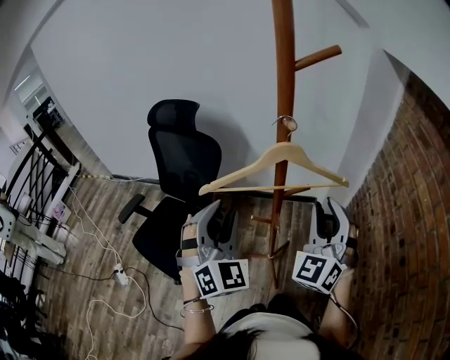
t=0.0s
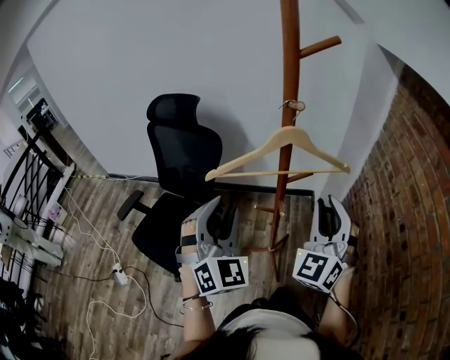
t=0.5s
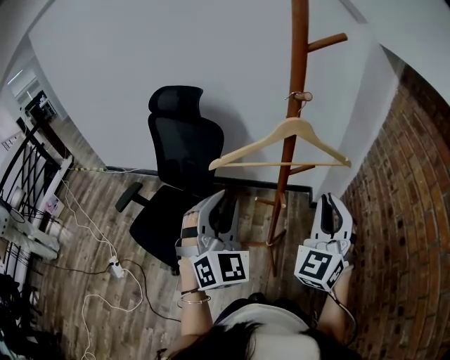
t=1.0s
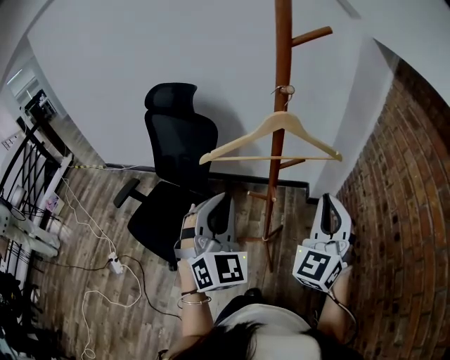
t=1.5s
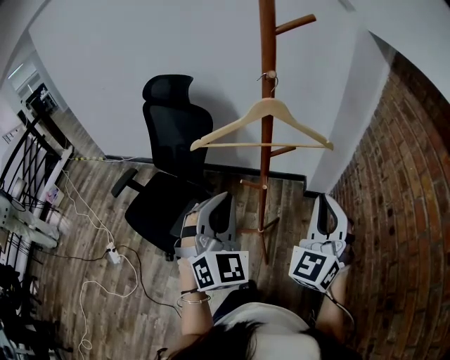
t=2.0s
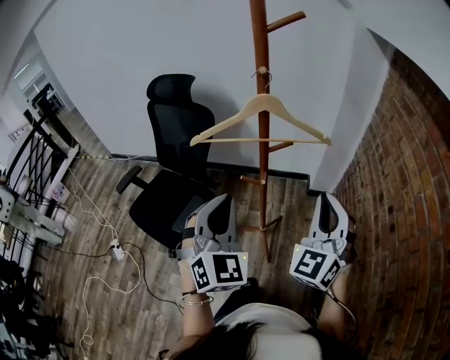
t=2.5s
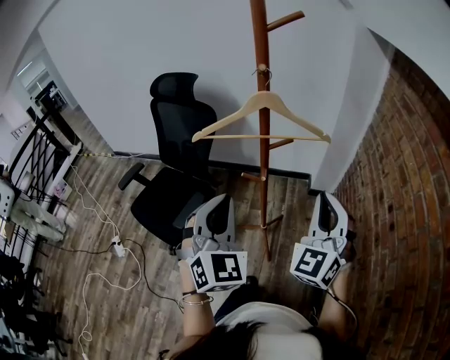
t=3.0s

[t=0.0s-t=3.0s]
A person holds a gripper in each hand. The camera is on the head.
t=0.0s to t=1.5s: Both grippers move backward, approximately 5 cm. The right gripper closes its fingers, while the left gripper closes its fingers.
t=1.5s to t=3.0s: The right gripper moves approximately 5 cm; the left gripper shifts roughly 10 cm backward and to the right.

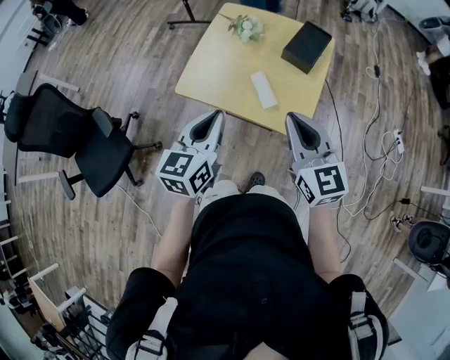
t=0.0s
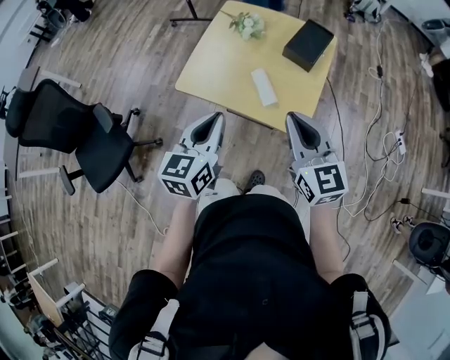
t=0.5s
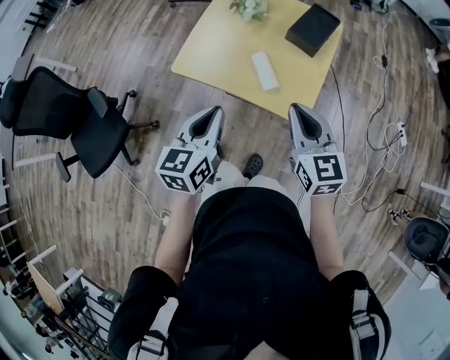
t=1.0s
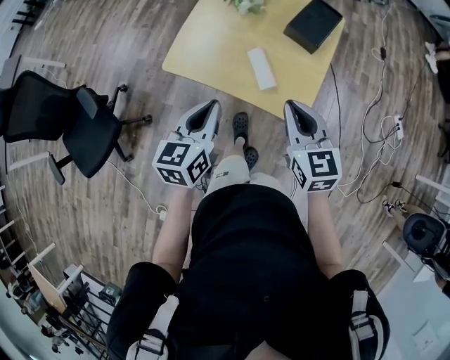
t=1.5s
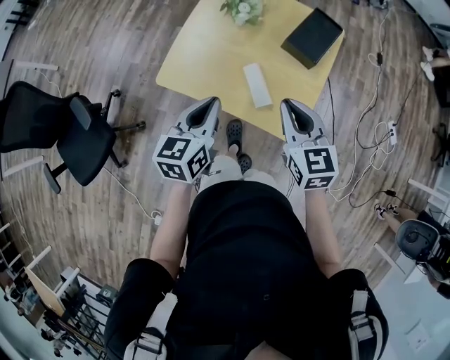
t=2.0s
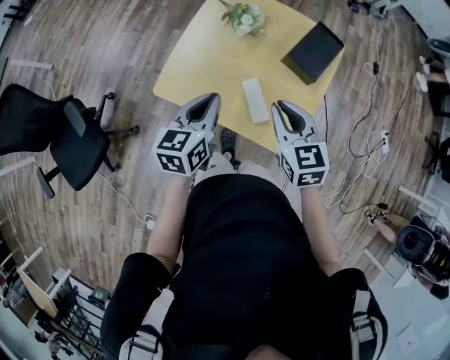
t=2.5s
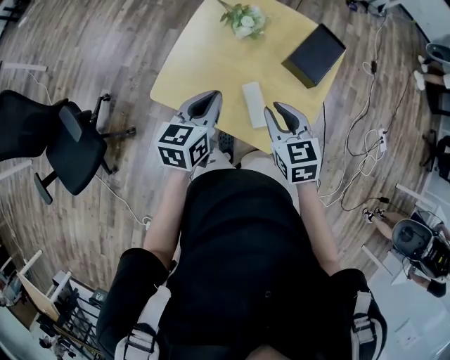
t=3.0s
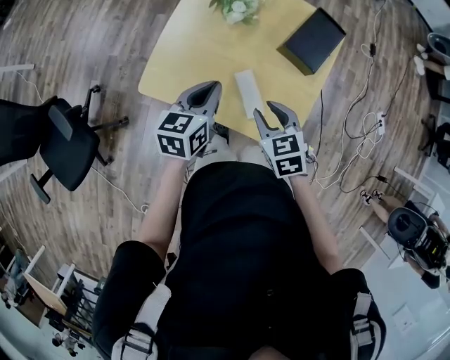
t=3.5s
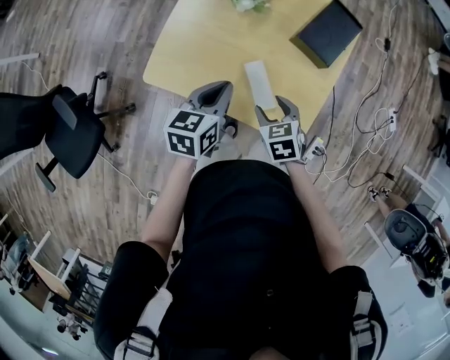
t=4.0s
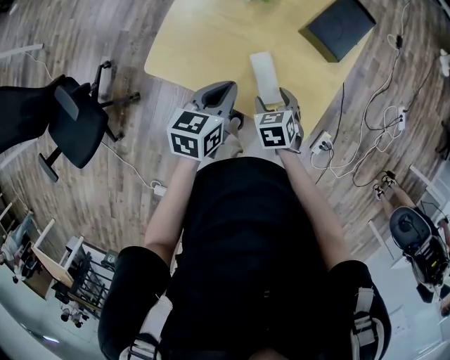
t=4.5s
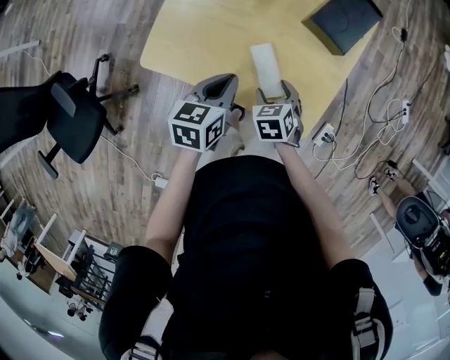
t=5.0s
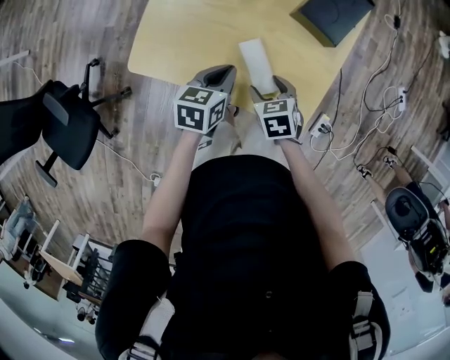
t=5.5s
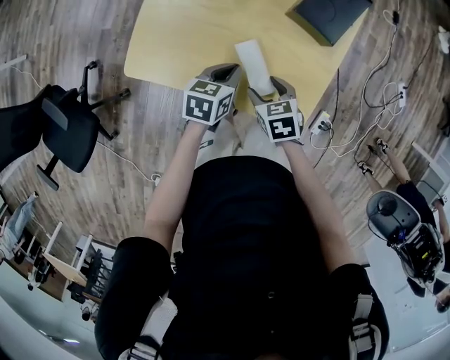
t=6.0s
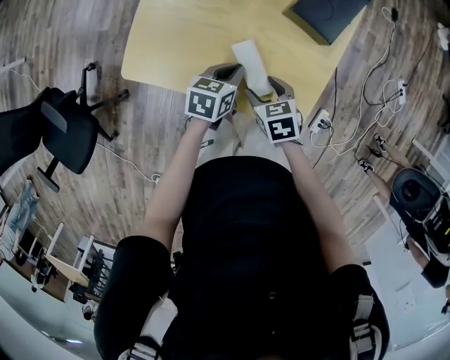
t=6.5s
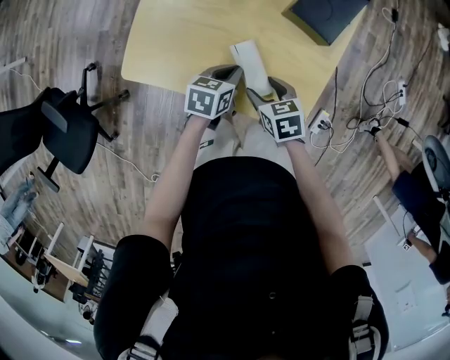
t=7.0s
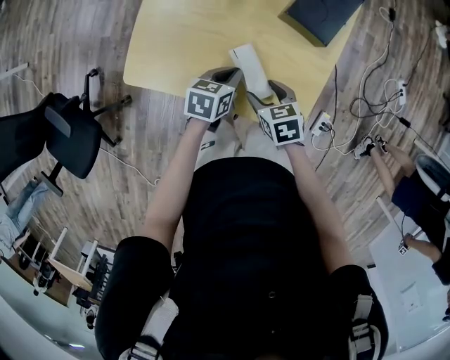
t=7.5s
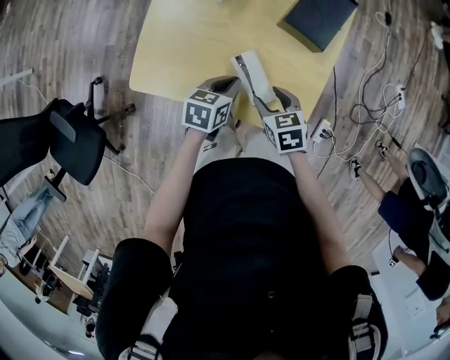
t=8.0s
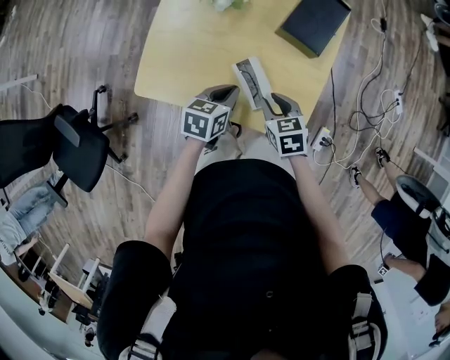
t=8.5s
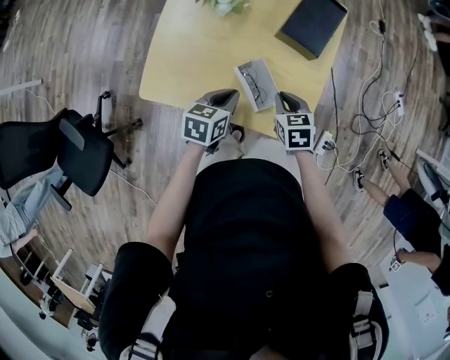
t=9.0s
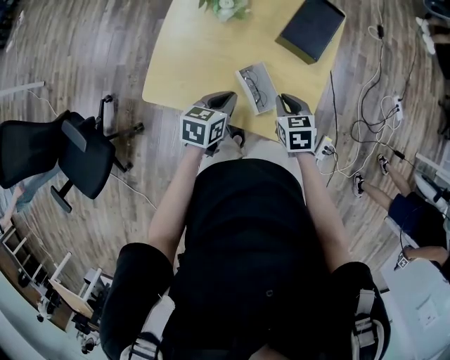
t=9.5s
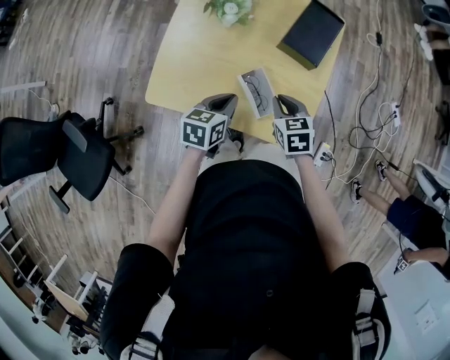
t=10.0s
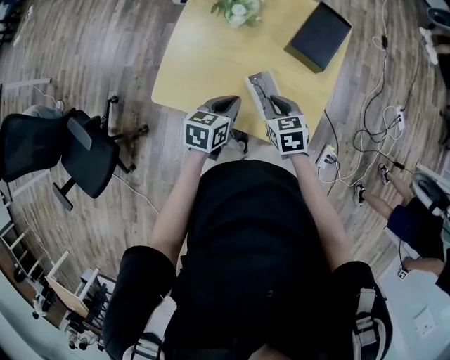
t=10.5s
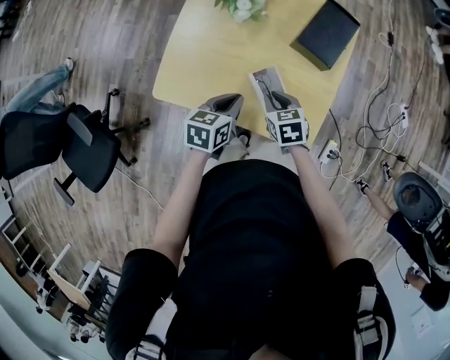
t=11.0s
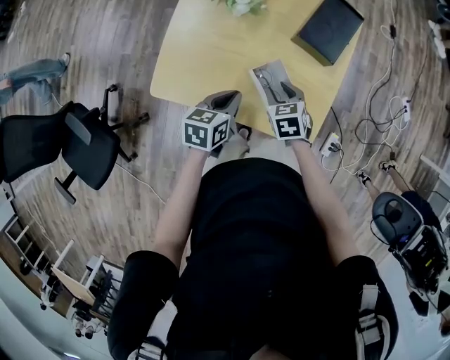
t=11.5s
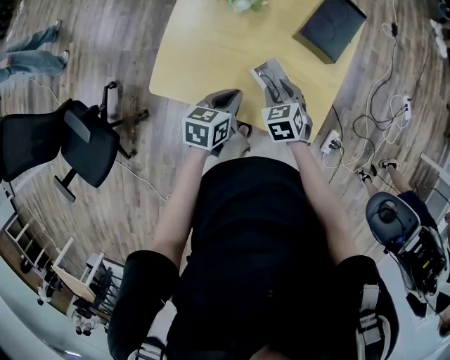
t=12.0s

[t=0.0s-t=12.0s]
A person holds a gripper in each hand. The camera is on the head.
t=0.0s to t=2.0s: Both grippers travel together forward and downward, about 15 cm.
t=2.0s to t=4.0s: The left gripper travels forward and downward by some 15 cm. The right gripper shifts some 20 cm downward, points its fingers about 30 degrees further downward, and opens its fingers.
t=4.0s to t=6.0s: The left gripper goes about 15 cm downward and to the right; the right gripper heads downward, covering some 10 cm.
t=6.0s to t=8.0s: There are only small adjustments of the grippers.
t=8.0s to t=10.0s: The grippers both shift upward by roughly 5 cm. The right gripper closes up.
t=10.0s to t=12.0s: The right gripper moves downward and to the left, some 10 cm, and opens its fingers.

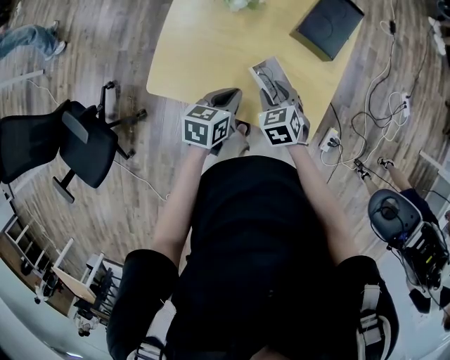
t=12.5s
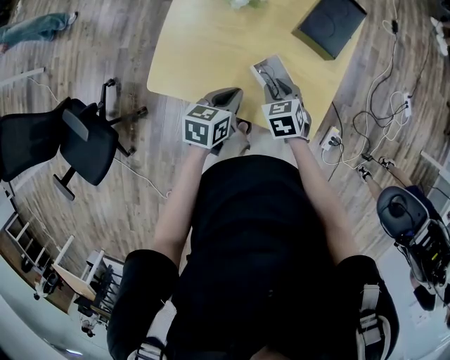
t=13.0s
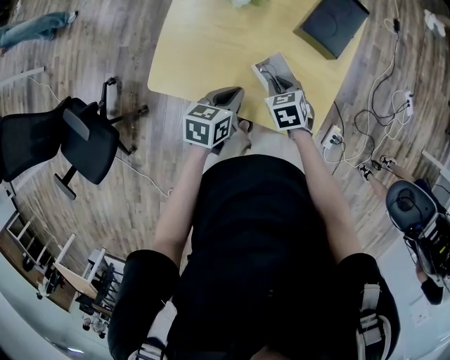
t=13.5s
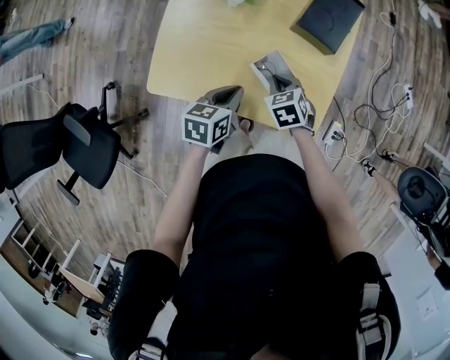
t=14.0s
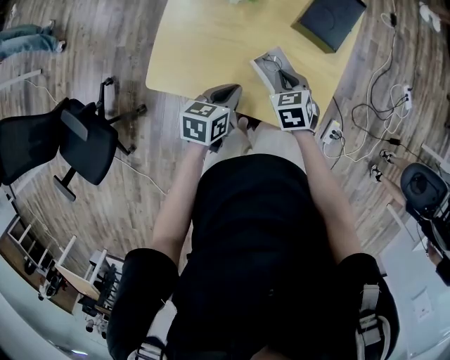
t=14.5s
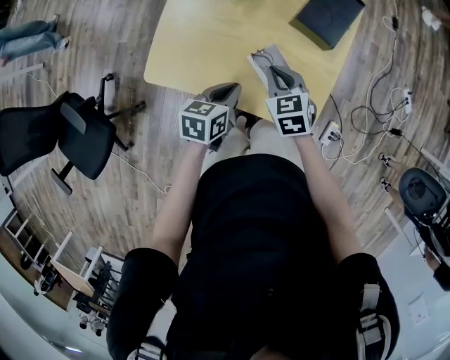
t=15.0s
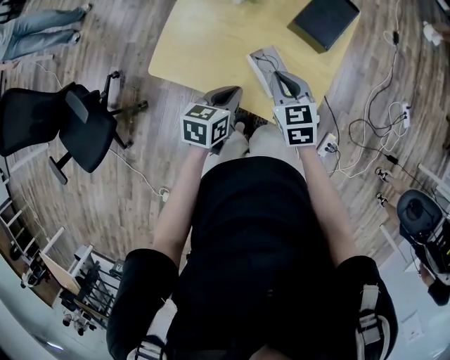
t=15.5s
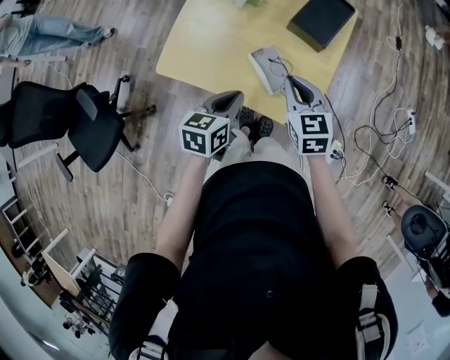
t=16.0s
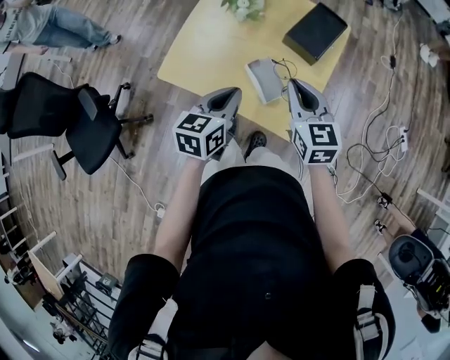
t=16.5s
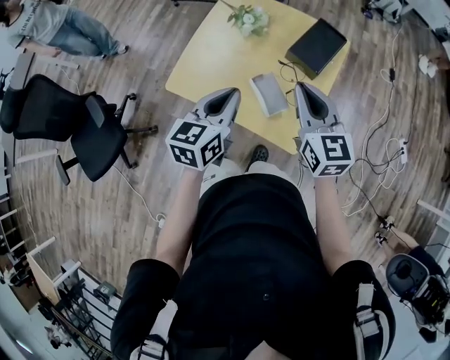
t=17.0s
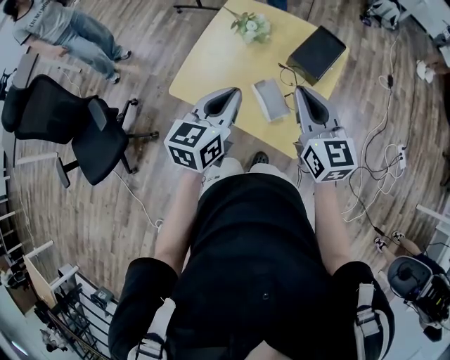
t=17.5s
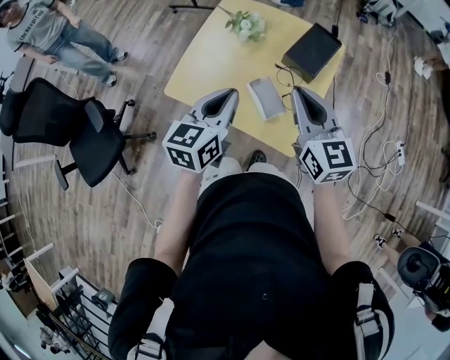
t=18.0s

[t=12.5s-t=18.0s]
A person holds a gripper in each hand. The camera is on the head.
t=12.5s to t=14.5s: The right gripper closes.
t=14.5s to t=16.0s: The right gripper moves upward and backward, approximately 15 cm, and swivels about 30 degrees. Meanwhile the left gripper travels upward, backward and to the right by roughly 15 cm.
t=16.0s to t=18.0s: Both grippers move upward, approximately 15 cm. The right gripper changes its angle by roughly 20 degrees. Meanwhile the left gripper rotates roughly 20 degrees.

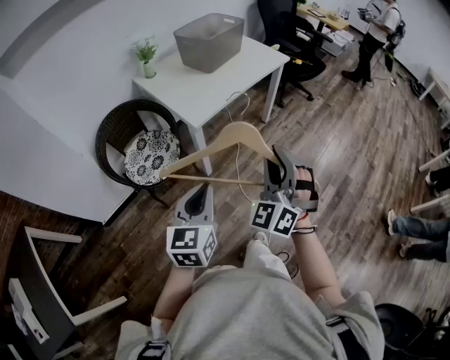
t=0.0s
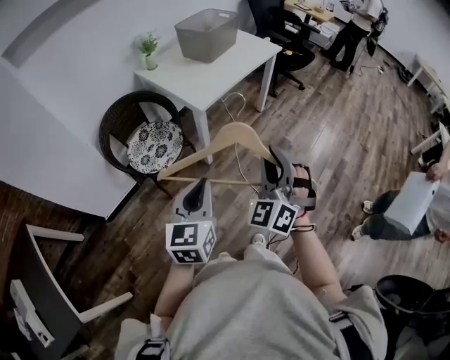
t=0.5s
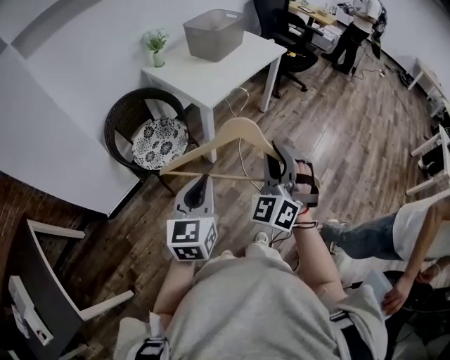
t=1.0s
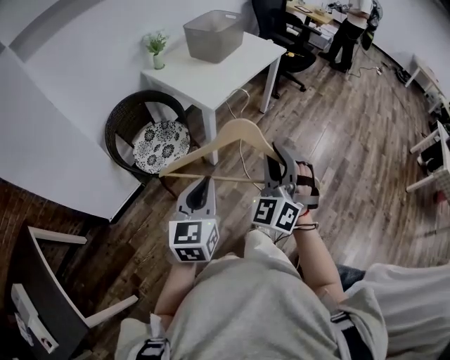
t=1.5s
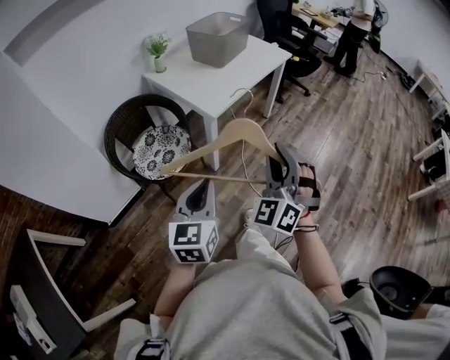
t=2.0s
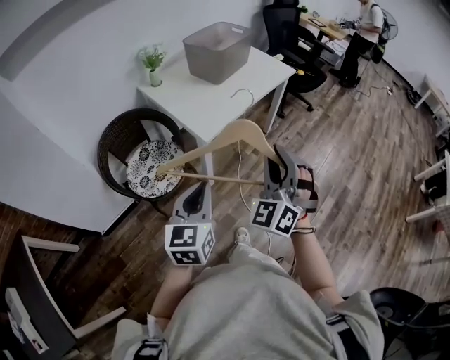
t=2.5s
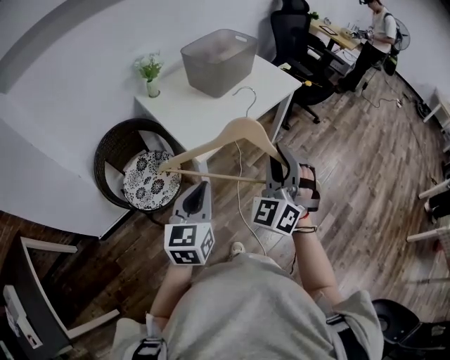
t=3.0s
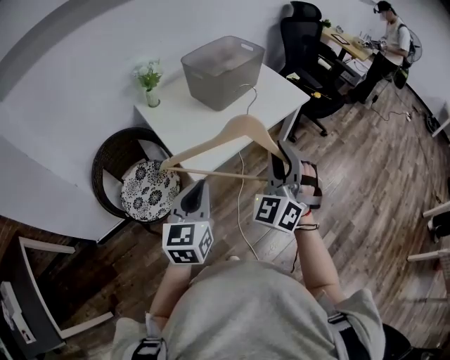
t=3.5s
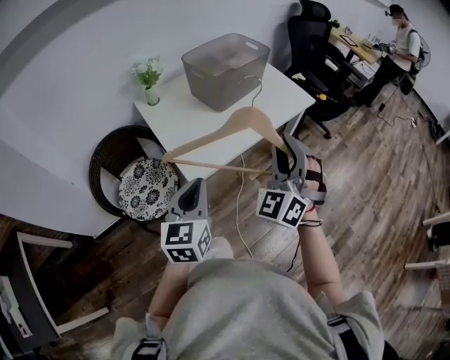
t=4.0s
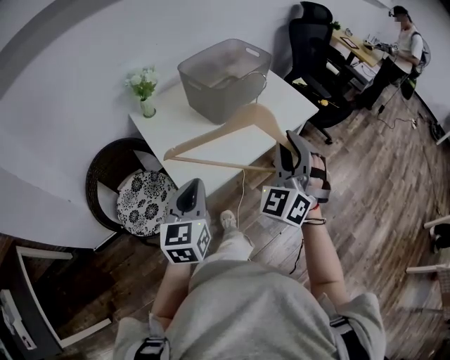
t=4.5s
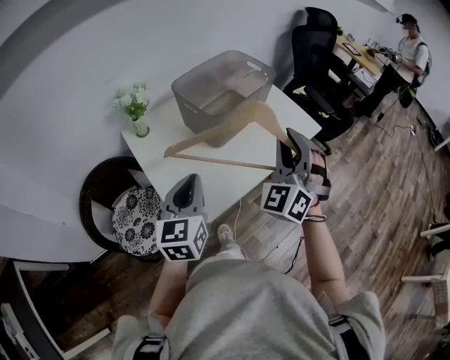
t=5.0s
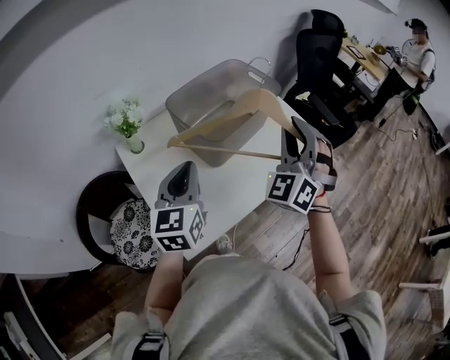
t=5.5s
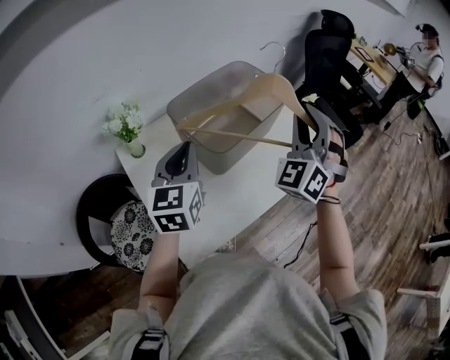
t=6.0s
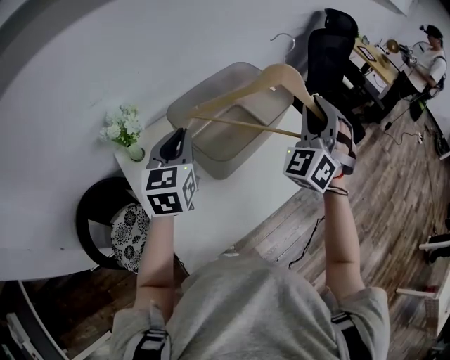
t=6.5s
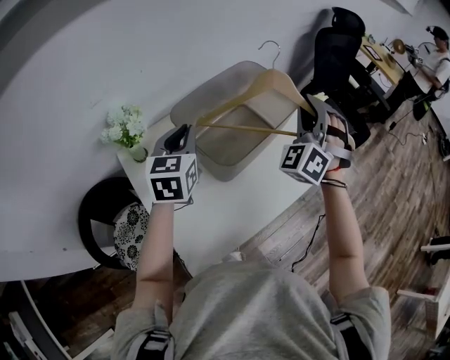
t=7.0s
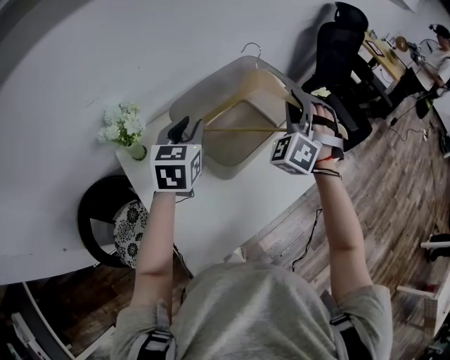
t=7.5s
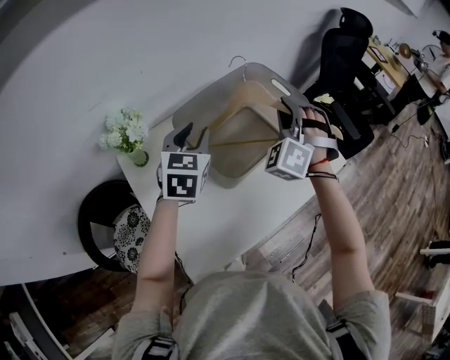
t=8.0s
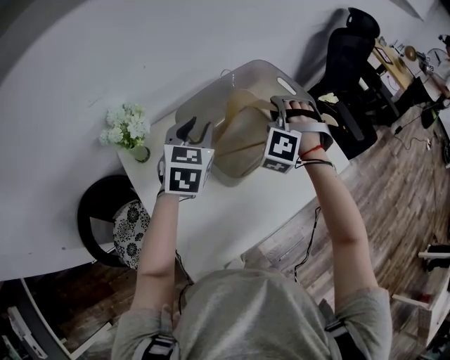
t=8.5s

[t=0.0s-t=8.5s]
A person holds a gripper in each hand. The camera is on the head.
t=0.0s to t=2.0s: The grippers both shift to the left and backward by some 10 cm.
t=2.0s to t=4.0s: Both grippers move forward, roughly 35 cm.
t=4.0s to t=6.5s: The pair of grippers is taken forward, approximately 50 cm.
t=6.5s to t=8.5s: The left gripper goes some 10 cm forward and downward, and opens. The right gripper travels downward, to the left and forward by approximately 20 cm, and rotates about 40 degrees.
